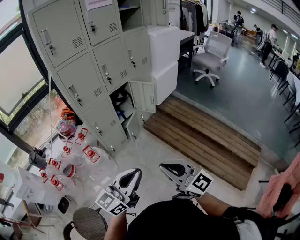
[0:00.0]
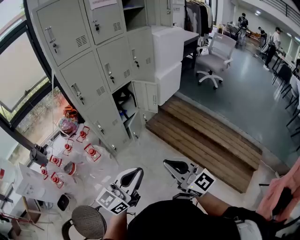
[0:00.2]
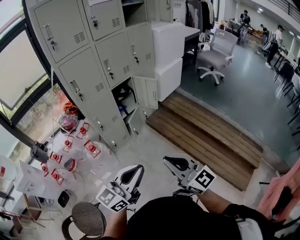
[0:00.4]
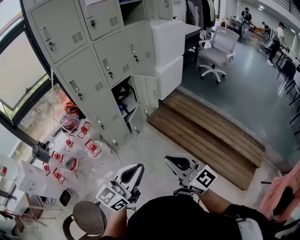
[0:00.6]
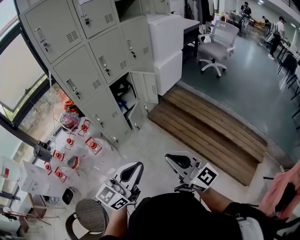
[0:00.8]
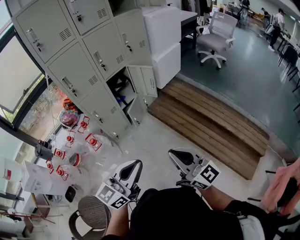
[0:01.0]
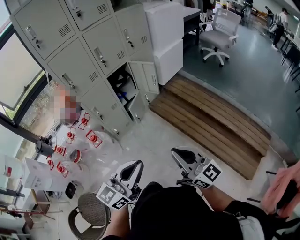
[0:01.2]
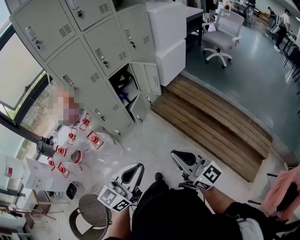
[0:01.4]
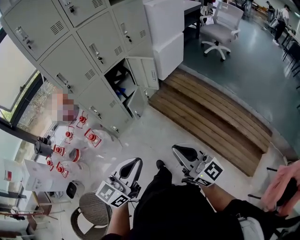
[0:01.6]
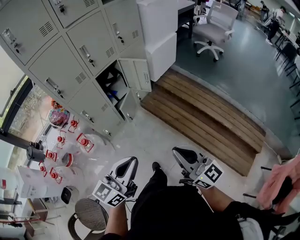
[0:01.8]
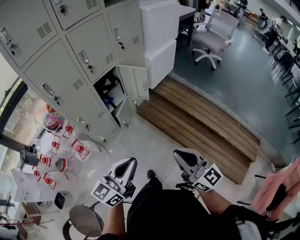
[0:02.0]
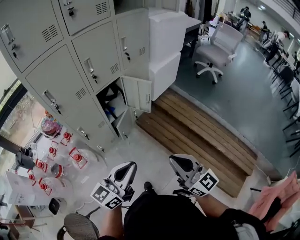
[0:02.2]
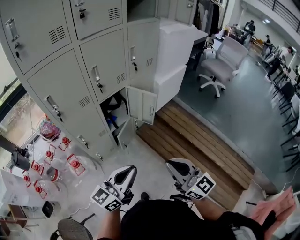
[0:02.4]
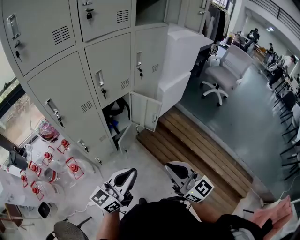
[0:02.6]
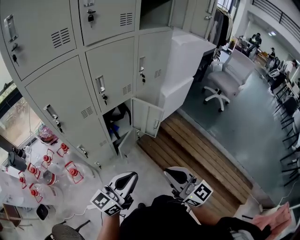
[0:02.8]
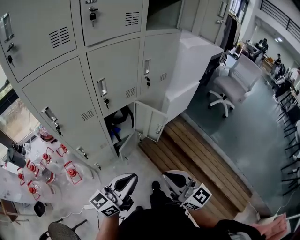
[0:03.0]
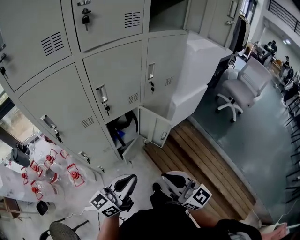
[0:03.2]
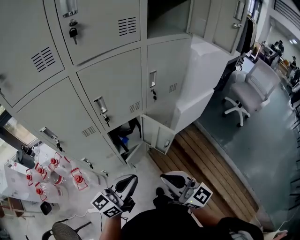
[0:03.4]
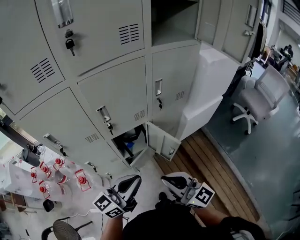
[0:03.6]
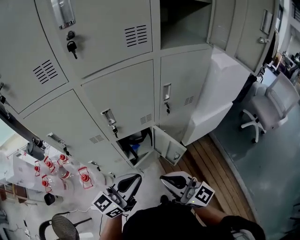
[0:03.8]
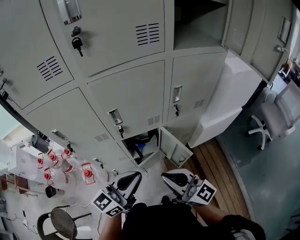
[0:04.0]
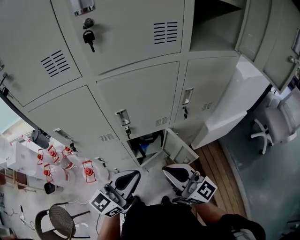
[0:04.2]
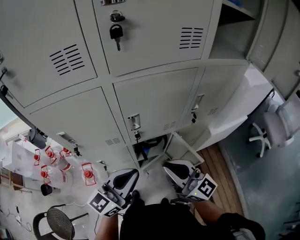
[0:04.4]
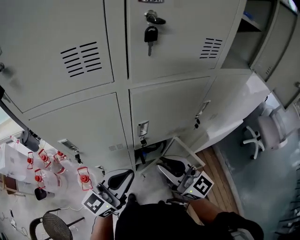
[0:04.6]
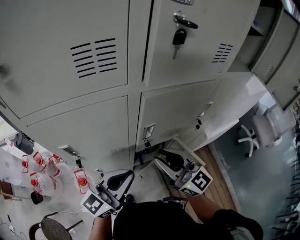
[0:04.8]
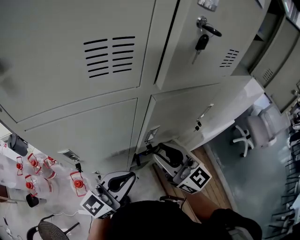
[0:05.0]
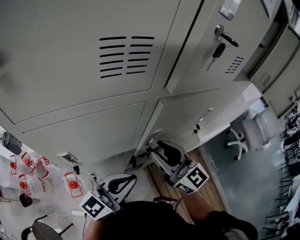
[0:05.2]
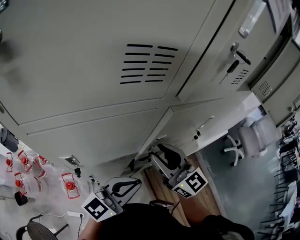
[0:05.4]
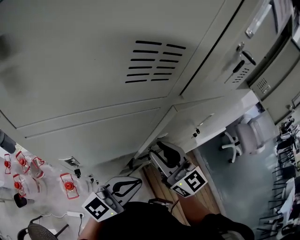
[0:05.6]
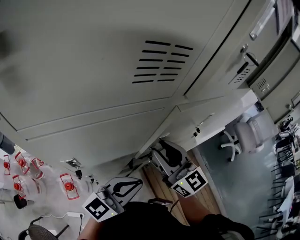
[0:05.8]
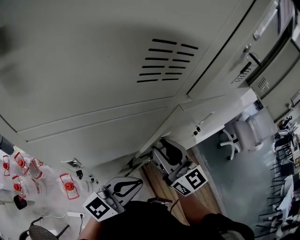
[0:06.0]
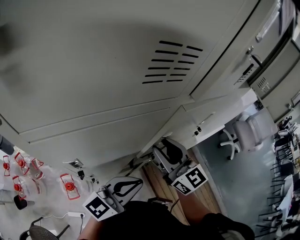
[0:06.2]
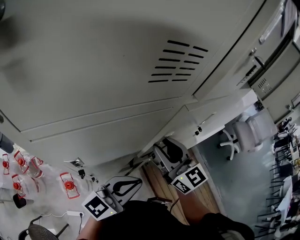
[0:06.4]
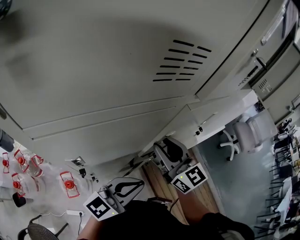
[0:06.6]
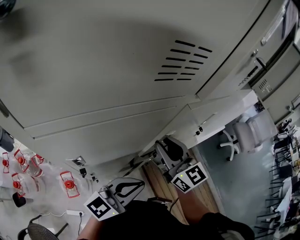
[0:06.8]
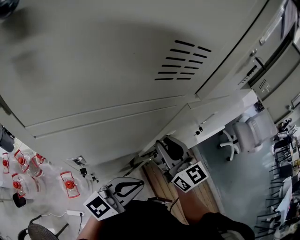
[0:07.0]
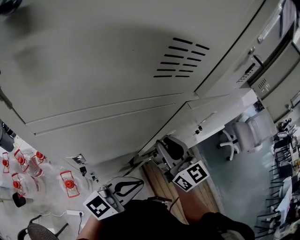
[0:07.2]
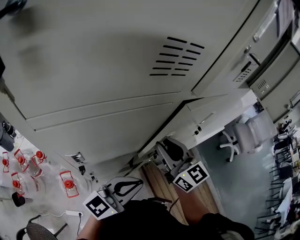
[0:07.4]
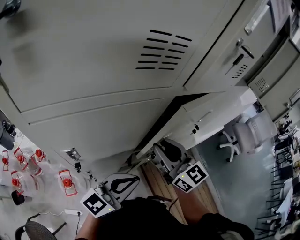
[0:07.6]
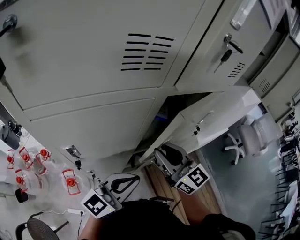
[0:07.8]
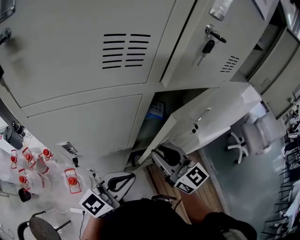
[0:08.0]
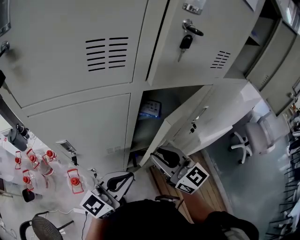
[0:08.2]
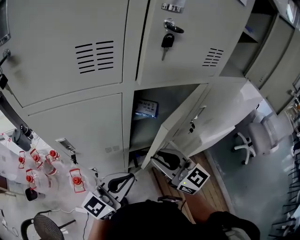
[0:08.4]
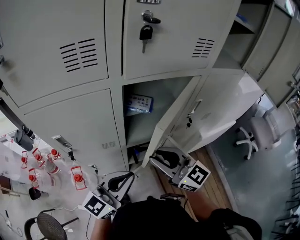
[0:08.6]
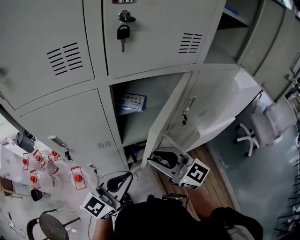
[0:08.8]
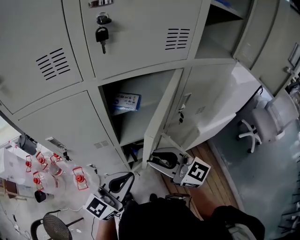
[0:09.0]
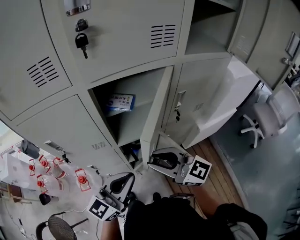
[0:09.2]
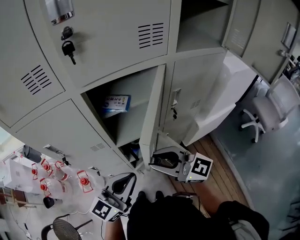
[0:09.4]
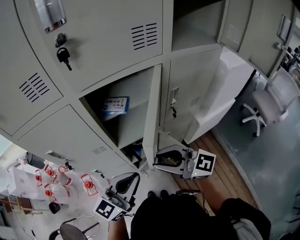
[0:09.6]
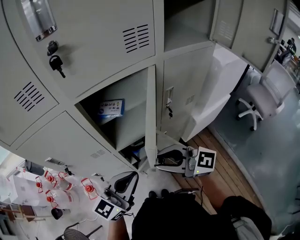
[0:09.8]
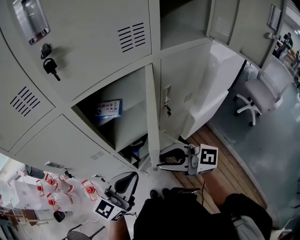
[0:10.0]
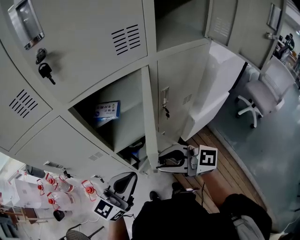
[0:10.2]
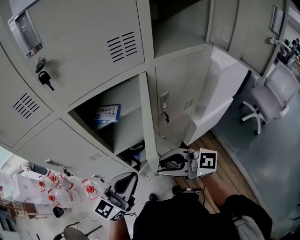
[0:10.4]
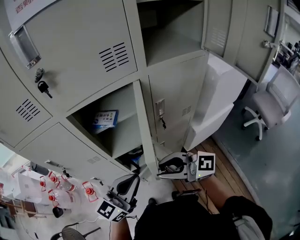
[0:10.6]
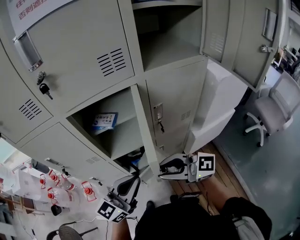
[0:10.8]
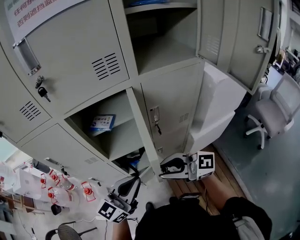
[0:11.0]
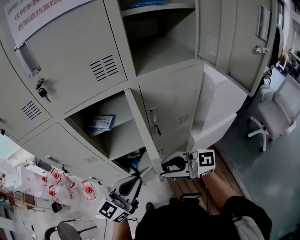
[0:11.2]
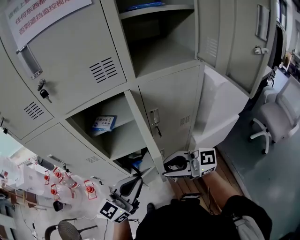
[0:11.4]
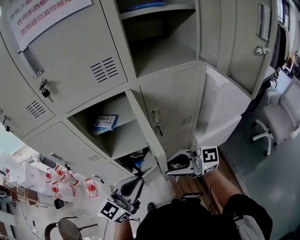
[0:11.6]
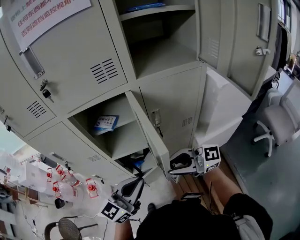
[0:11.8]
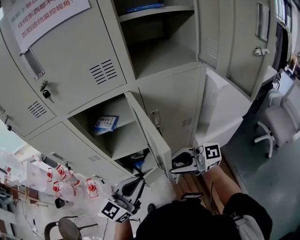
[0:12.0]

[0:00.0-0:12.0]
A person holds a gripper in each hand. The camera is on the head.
0:00.0 to 0:01.6: The right gripper shifts about 10 cm to the right and forward. The left gripper travels forward, downward and to the right by about 10 cm.
0:01.6 to 0:03.0: Both grippers move forward, some 35 cm.
0:03.0 to 0:04.4: The grippers both shift forward by some 25 cm. The left gripper turns by some 30 degrees, while the right gripper rotates approximately 30 degrees.
0:04.4 to 0:06.0: The left gripper shifts approximately 10 cm to the left, and changes its angle by approximately 20 degrees. The right gripper shifts about 20 cm to the left and forward, changes its angle by some 30 degrees, and opens up.
0:06.0 to 0:07.6: The grippers stay close to where they were, moving slightly.
0:07.6 to 0:09.0: The left gripper moves to the right, roughly 10 cm. The right gripper heads backward and to the right, covering some 15 cm, and swivels about 30 degrees.
0:09.0 to 0:10.4: The two grippers go approximately 10 cm to the right.
0:10.4 to 0:12.0: The right gripper shifts by roughly 15 cm, and changes its angle by approximately 20 degrees. The left gripper ends up about 10 cm from where it was.

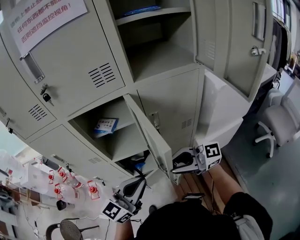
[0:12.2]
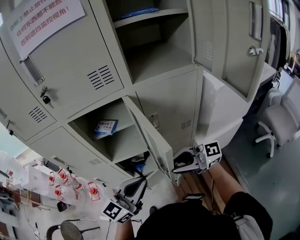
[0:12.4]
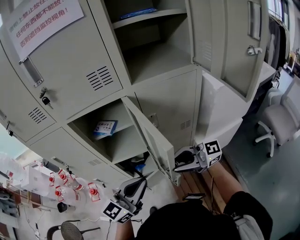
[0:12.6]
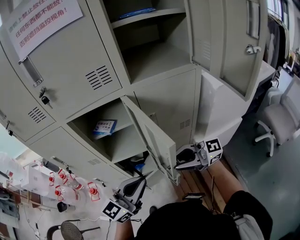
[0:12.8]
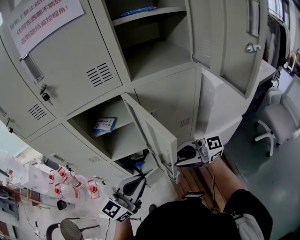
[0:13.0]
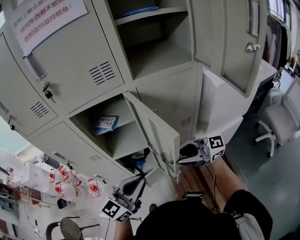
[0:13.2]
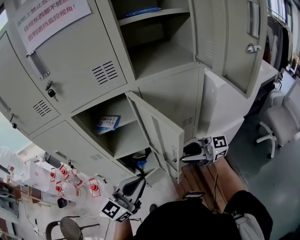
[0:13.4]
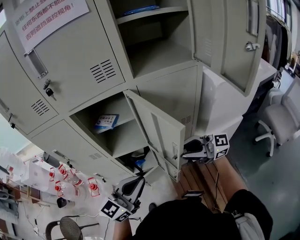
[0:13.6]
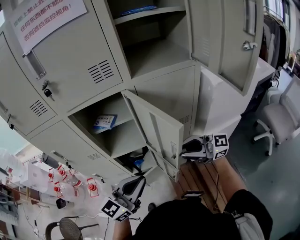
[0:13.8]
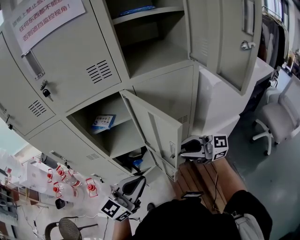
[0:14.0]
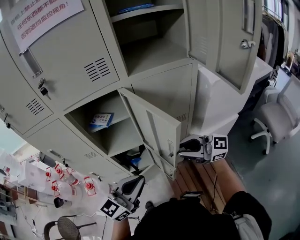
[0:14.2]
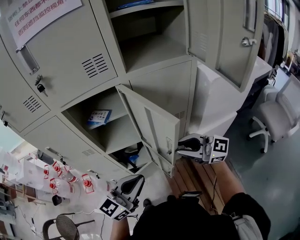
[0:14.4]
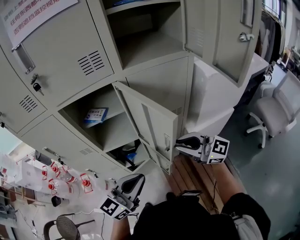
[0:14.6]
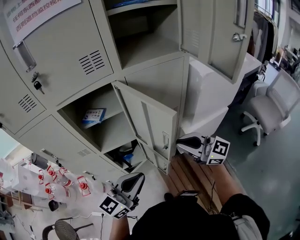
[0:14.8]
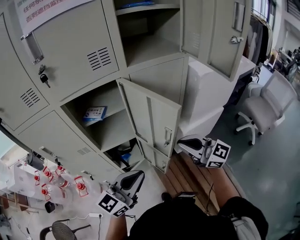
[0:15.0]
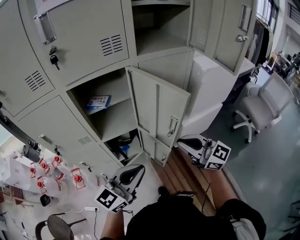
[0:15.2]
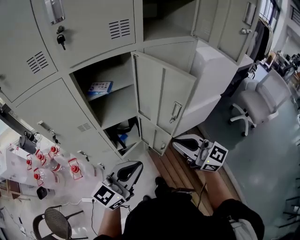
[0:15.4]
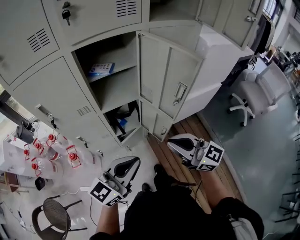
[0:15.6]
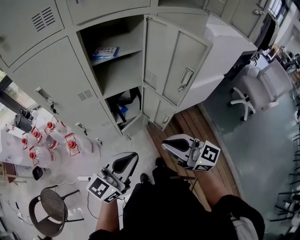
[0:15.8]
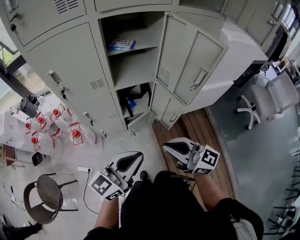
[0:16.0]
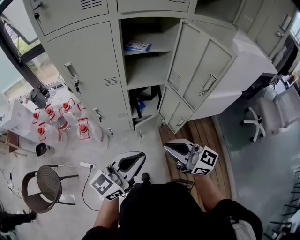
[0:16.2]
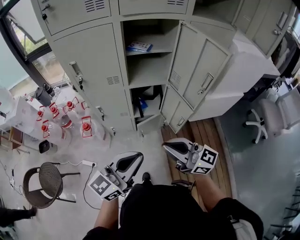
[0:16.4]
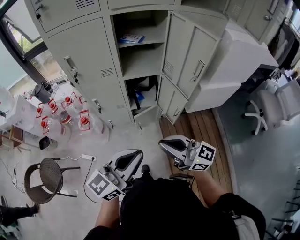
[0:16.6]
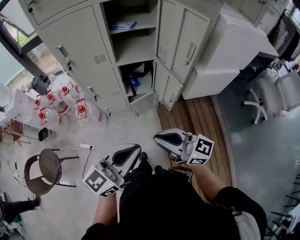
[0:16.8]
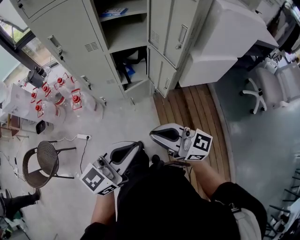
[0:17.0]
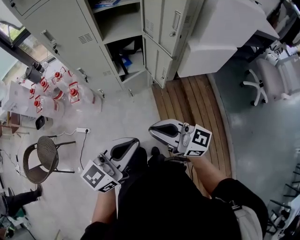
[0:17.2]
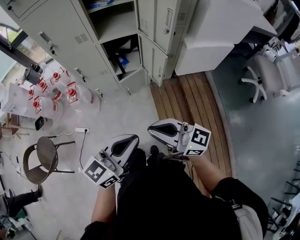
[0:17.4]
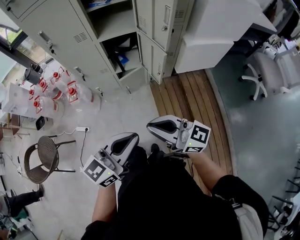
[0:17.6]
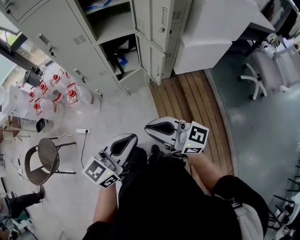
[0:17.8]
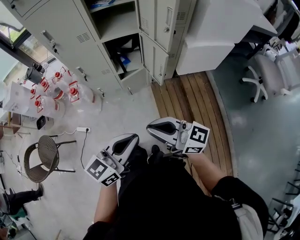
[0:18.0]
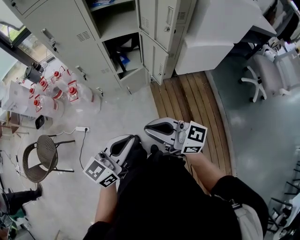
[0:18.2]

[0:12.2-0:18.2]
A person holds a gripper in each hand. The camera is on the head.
0:12.2 to 0:13.8: The right gripper changes place by some 5 cm.
0:13.8 to 0:15.2: The left gripper moves approximately 5 cm. The right gripper moves about 10 cm, rotates approximately 40 degrees, and closes its fingers.
0:15.2 to 0:16.6: Both grippers move backward and to the left, some 25 cm. The right gripper turns by about 30 degrees.
0:16.6 to 0:18.2: The left gripper heads backward, downward and to the right, covering about 15 cm, while the right gripper moves backward and downward, approximately 15 cm.

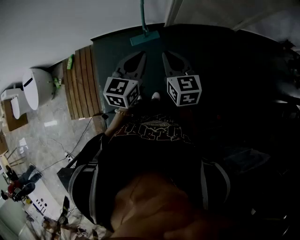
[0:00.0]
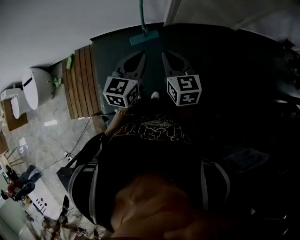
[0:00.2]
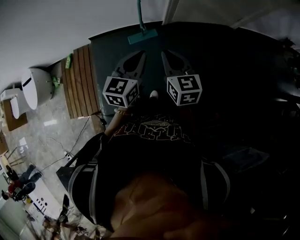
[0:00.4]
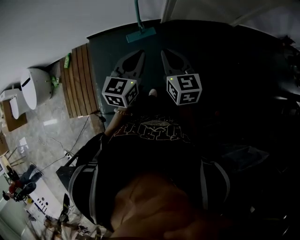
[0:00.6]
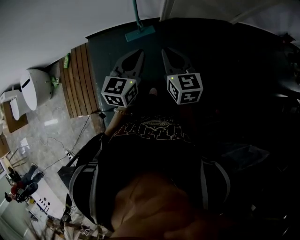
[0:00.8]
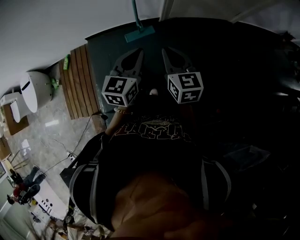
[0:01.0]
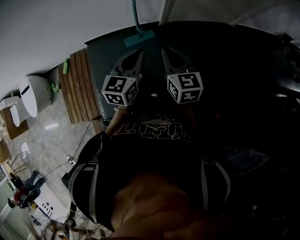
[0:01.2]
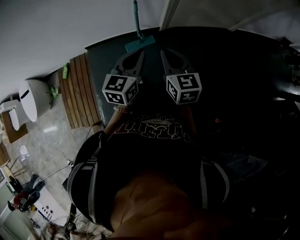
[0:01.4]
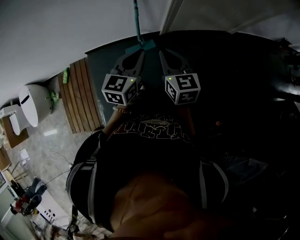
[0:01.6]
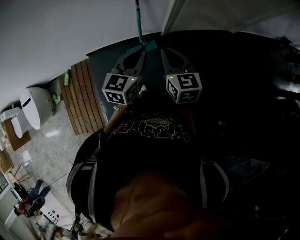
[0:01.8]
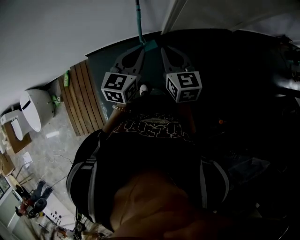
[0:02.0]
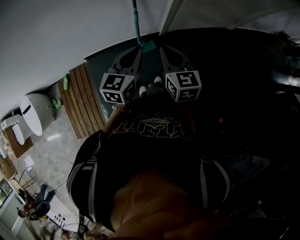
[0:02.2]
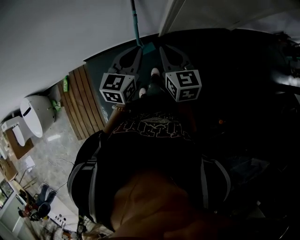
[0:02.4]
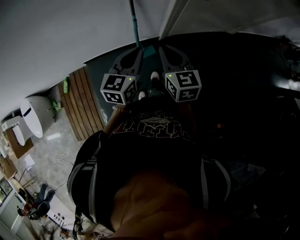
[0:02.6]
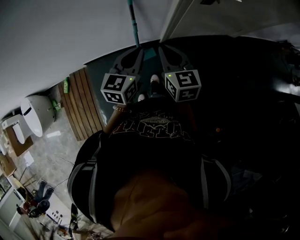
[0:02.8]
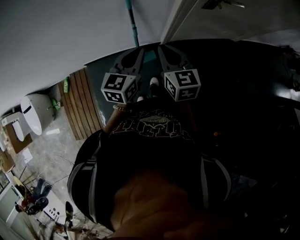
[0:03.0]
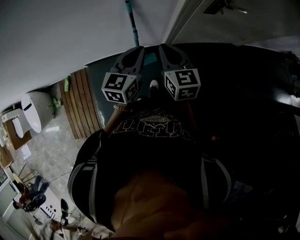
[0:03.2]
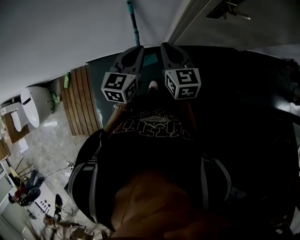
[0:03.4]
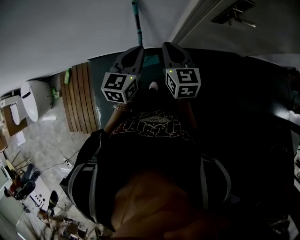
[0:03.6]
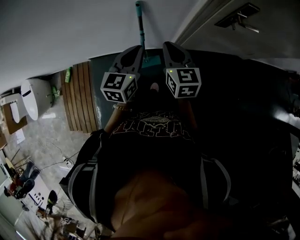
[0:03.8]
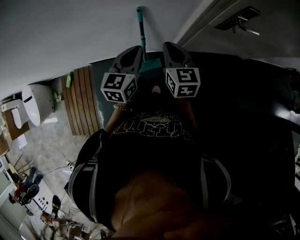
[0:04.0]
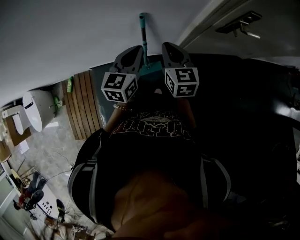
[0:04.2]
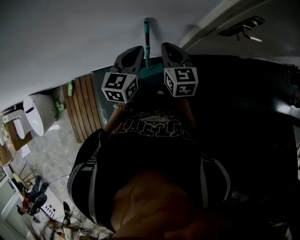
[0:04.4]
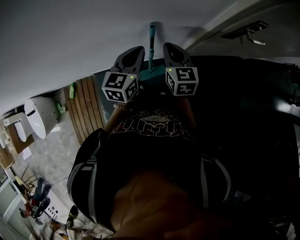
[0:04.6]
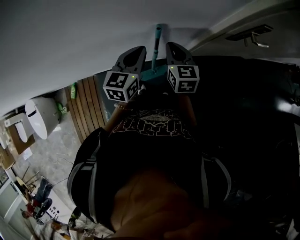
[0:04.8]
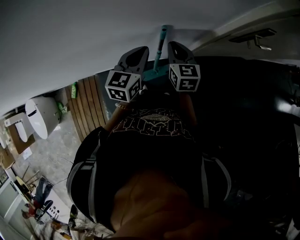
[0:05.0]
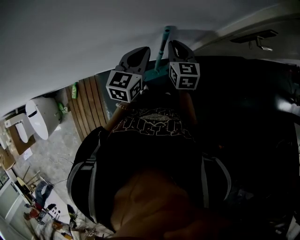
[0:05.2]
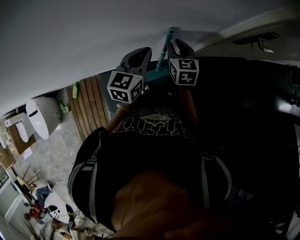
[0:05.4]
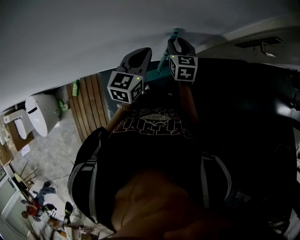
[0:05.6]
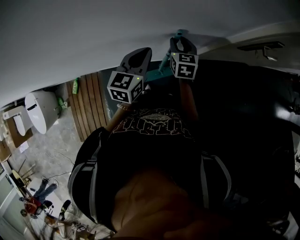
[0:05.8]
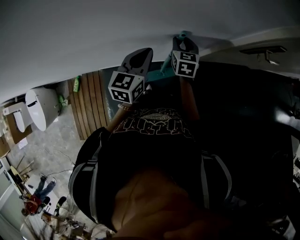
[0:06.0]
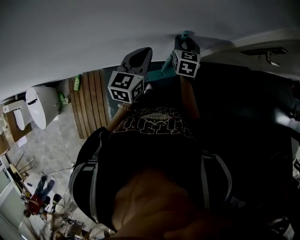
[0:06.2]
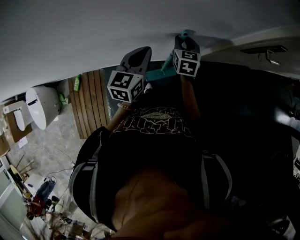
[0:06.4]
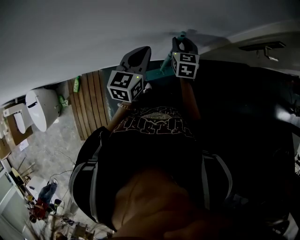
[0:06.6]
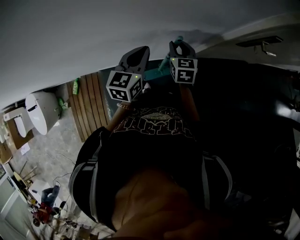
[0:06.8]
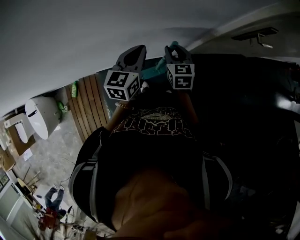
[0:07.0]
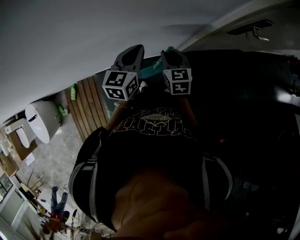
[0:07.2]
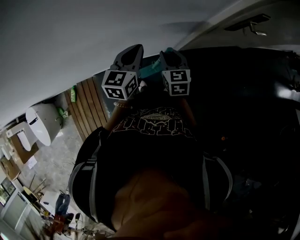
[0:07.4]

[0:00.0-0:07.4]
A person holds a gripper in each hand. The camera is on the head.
0:00.0 to 0:01.4: Both grippers travel together forward, approximately 10 cm.
0:01.4 to 0:03.0: The grippers both shift forward by approximately 25 cm.
0:03.0 to 0:04.4: The right gripper moves forward, about 15 cm; the left gripper goes about 20 cm forward and to the left.
0:04.4 to 0:06.0: The left gripper is displaced to the left by some 10 cm. Meanwhile the right gripper heads downward, forward and to the left, covering approximately 15 cm, and opens up.
0:06.0 to 0:07.4: The right gripper shifts about 10 cm backward.
